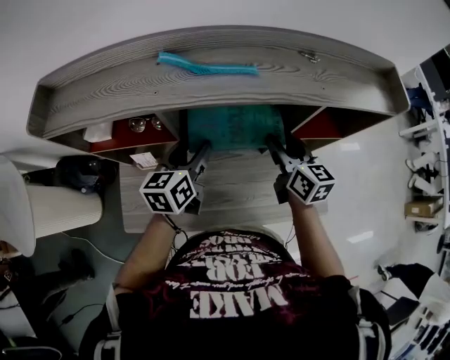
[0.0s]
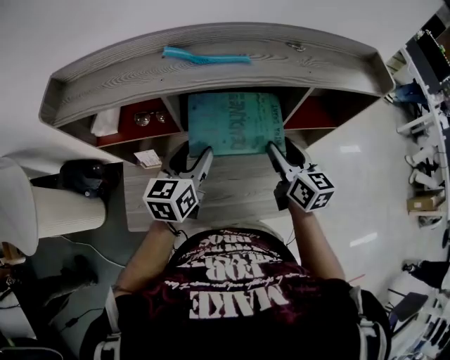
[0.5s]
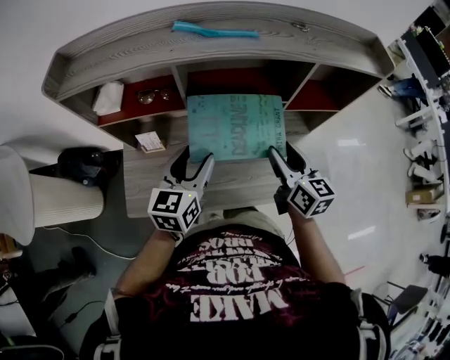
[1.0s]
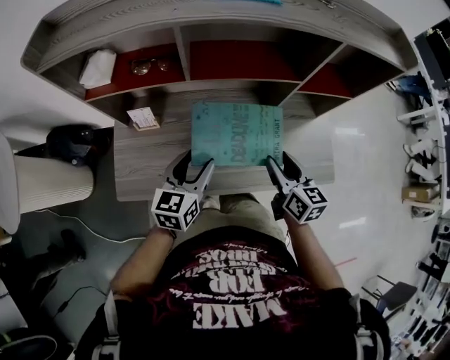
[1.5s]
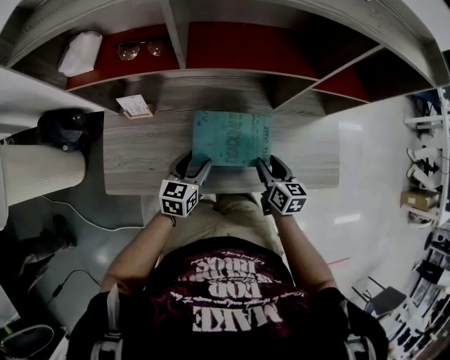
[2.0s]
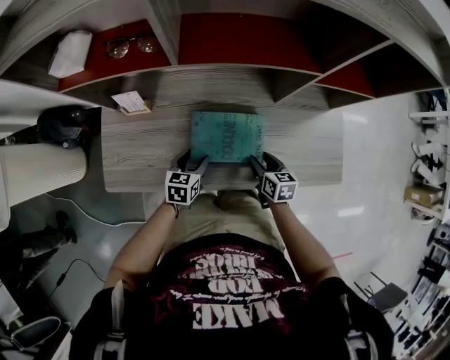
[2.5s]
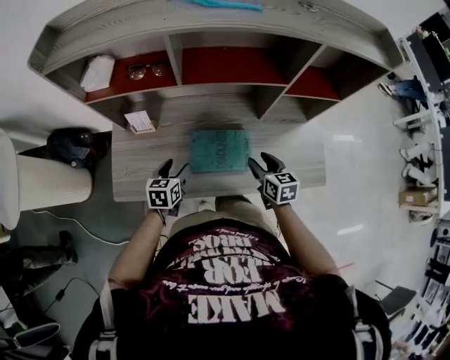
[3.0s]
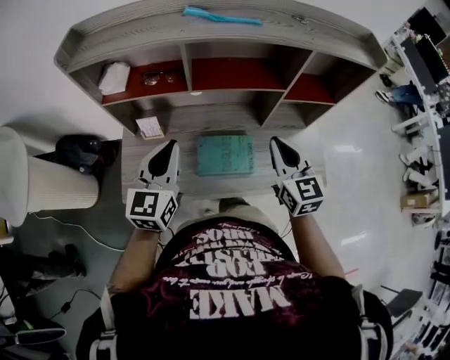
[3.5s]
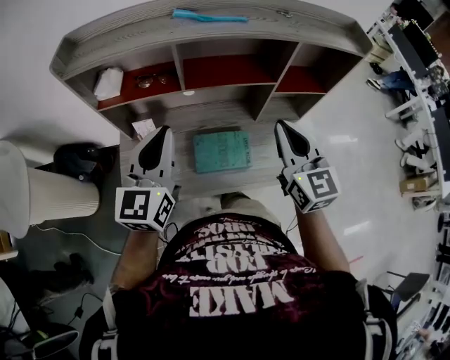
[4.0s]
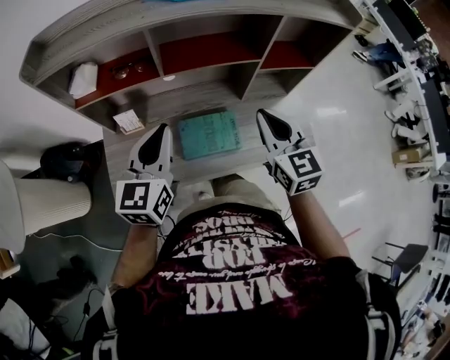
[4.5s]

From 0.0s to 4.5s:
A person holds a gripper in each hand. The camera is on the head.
From 0.0s to 2.0s: The grippers both shift downward and backward by approximately 30 cm.
From 2.0s to 4.5s: The left gripper goes up and down, about 50 cm each way, reversing 2 times, changes its angle by roughly 30 degrees, and closes up. Meanwhile the right gripper goes up and down, approximately 50 cm each way, reversing 2 times, changes its angle by approximately 30 degrees, and closes.

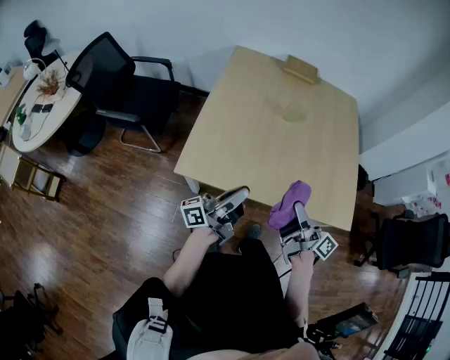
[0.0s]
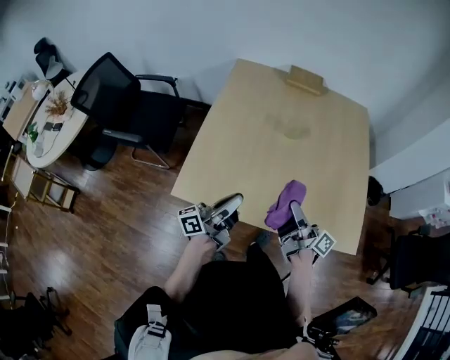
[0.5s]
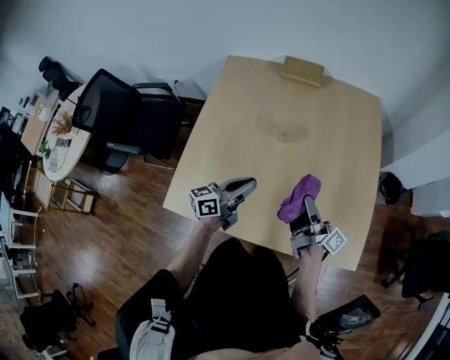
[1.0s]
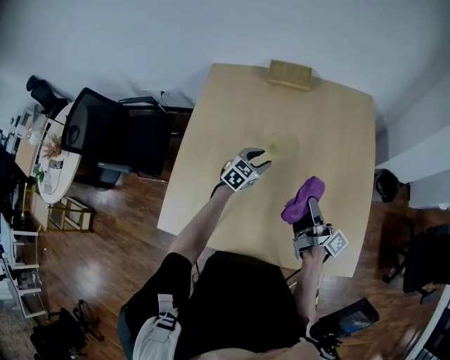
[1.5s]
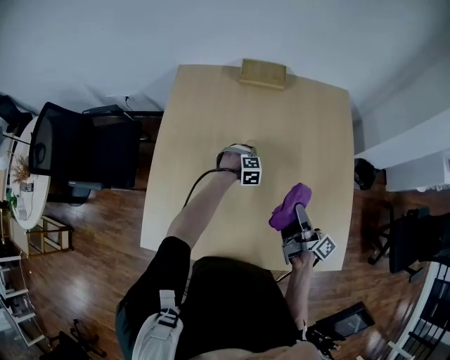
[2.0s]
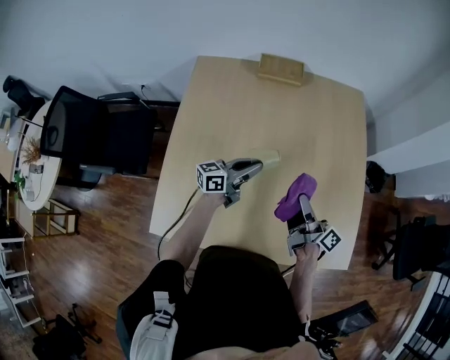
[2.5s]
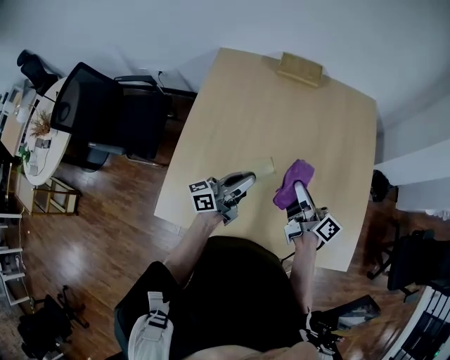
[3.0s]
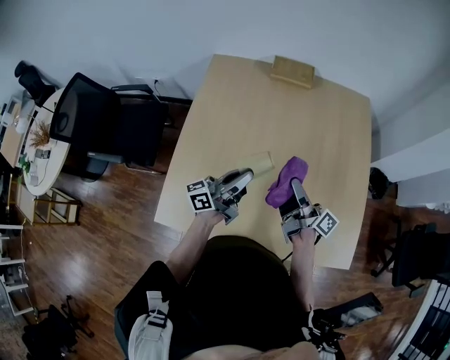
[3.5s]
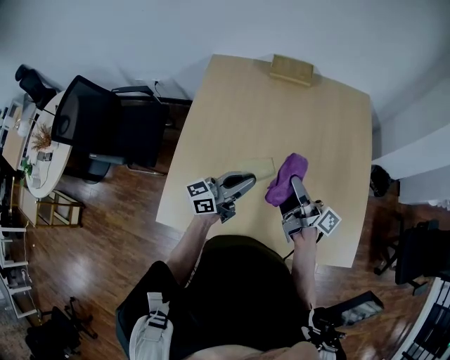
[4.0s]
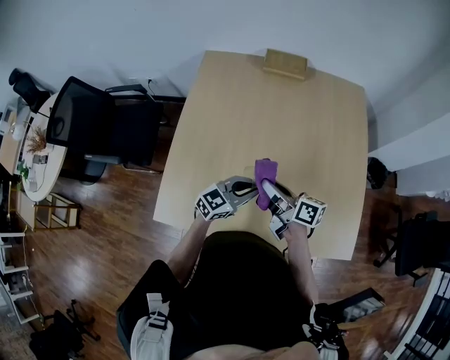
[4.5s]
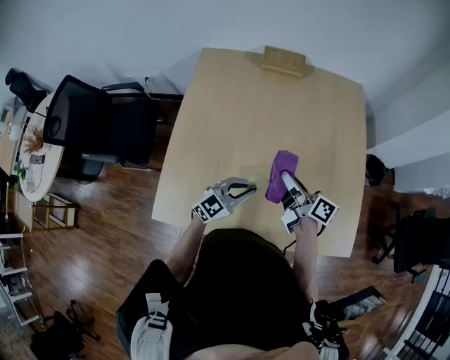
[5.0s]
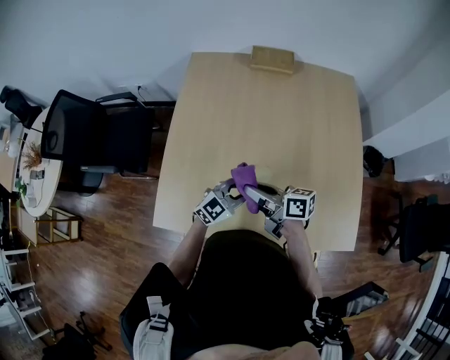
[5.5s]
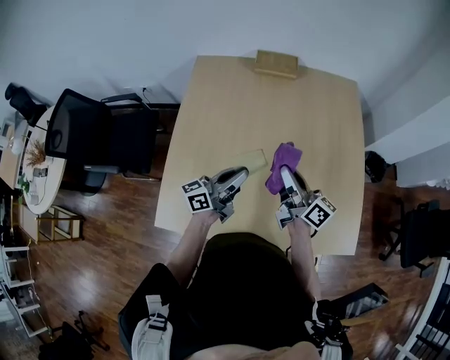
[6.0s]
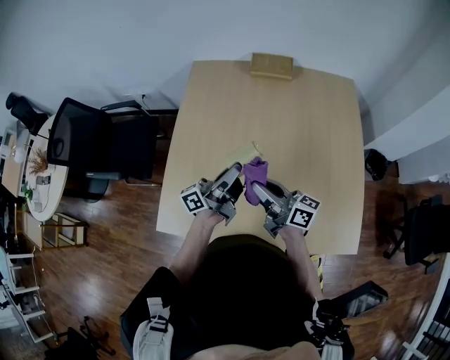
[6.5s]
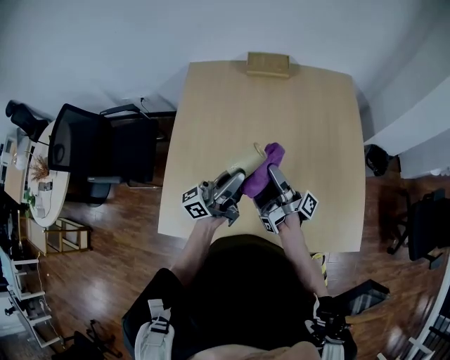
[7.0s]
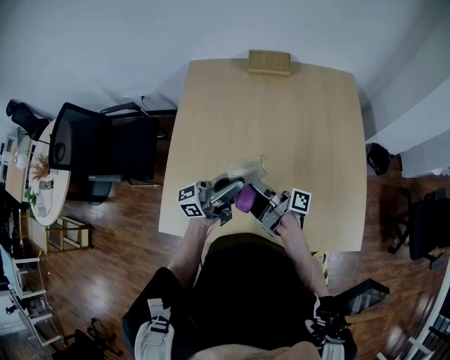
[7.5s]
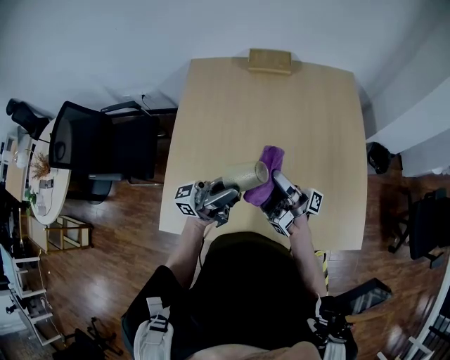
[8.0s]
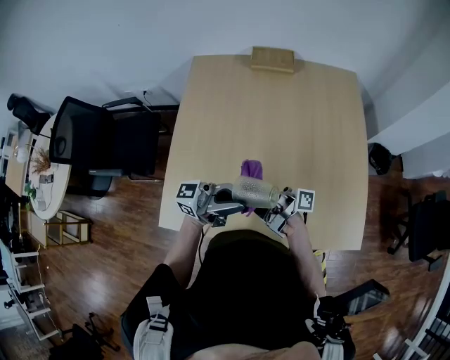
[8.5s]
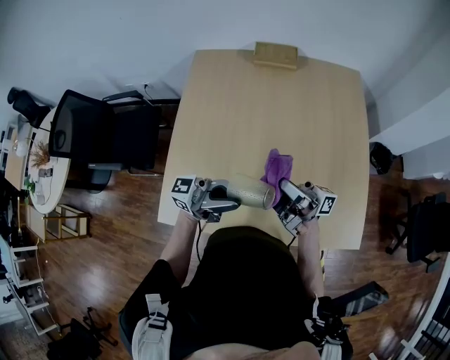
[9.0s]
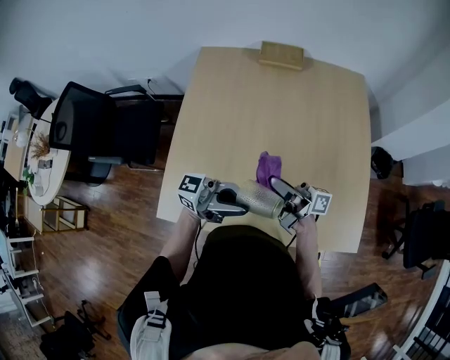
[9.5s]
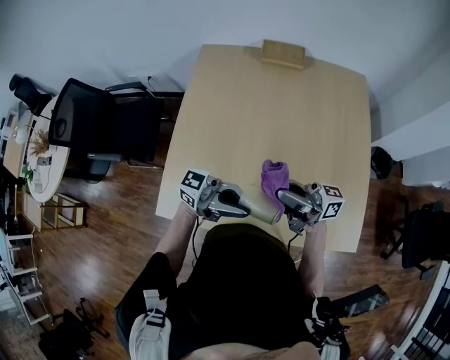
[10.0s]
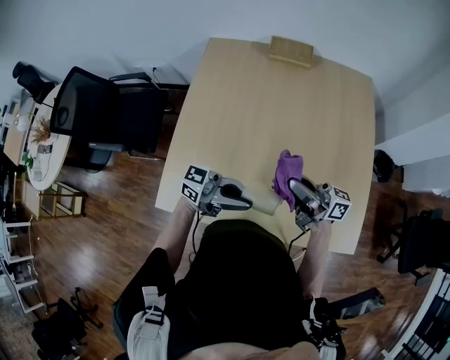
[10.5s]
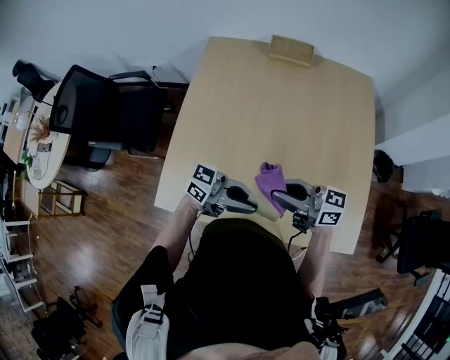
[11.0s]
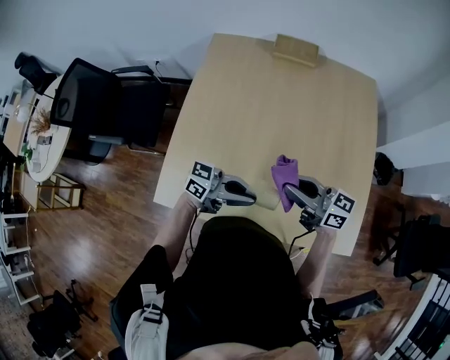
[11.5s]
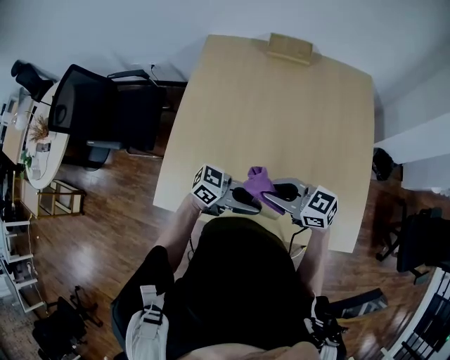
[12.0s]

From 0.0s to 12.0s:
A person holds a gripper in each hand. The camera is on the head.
From 0.0s to 2.0s: The right gripper heads forward and to the right, covering roughly 35 cm. Meanwhile the left gripper heads forward and downward, covering approximately 60 cm, points its fingers roughly 100 degrees further downward, and opens up.
From 2.0s to 4.0s: The right gripper moves to the left and upward, some 10 cm. The left gripper travels upward and backward by some 35 cm, and points its fingers roughly 80 degrees further upward.
From 4.0s to 6.0s: The left gripper reaches some 10 cm downward, then returns. The right gripper swings left and right, some 10 cm each way, with 3 reversals, and swivels approximately 30 degrees.
From 6.0s to 8.0s: The left gripper goes some 10 cm upward and backward, and swivels some 30 degrees, while the right gripper goes downward and returns, some 5 cm each way, and twists approximately 50 degrees clockwise, seen from behind.
From 8.0s to 10.0s: The right gripper moves up and down over some 10 cm, changing direction 3 times, and rotates approximately 50 degrees, while the left gripper shifts by about 10 cm, and swivels approximately 30 degrees.
From 10.0s to 12.0s: The two grippers go approximately 10 cm downward. The left gripper swivels about 20 degrees. The right gripper tilts its fingers about 40 degrees downward.

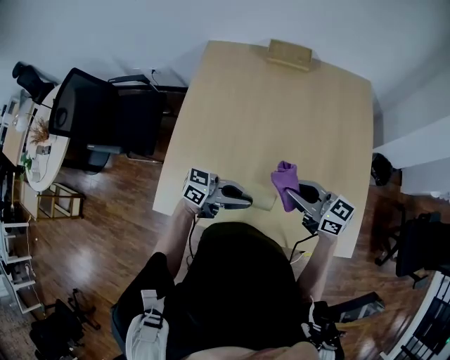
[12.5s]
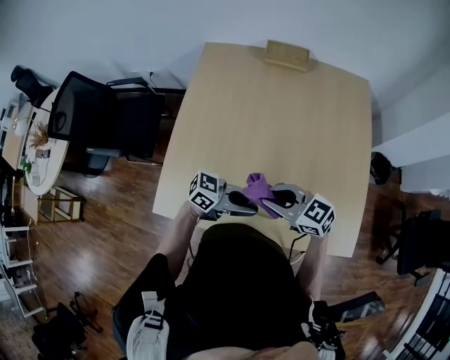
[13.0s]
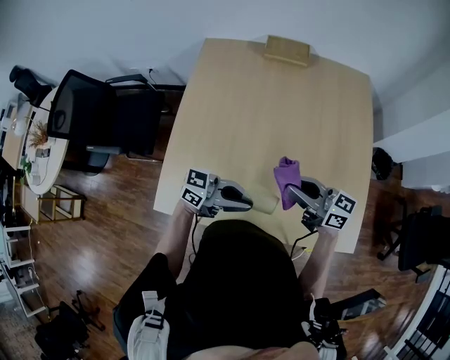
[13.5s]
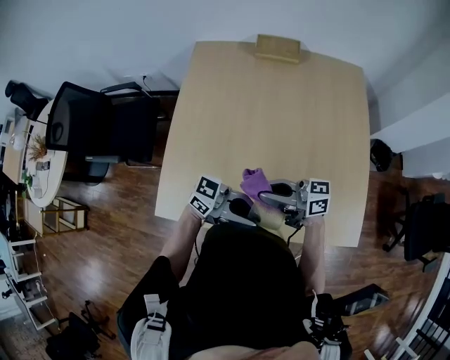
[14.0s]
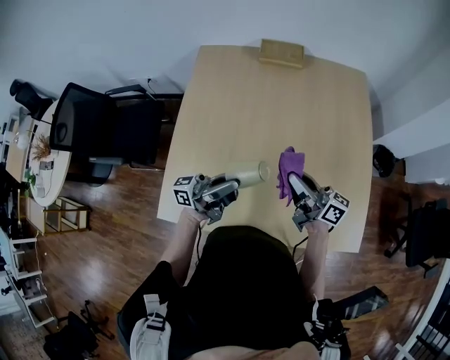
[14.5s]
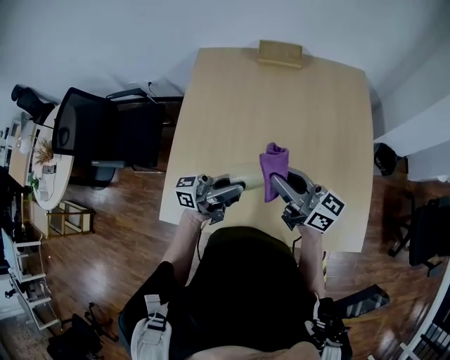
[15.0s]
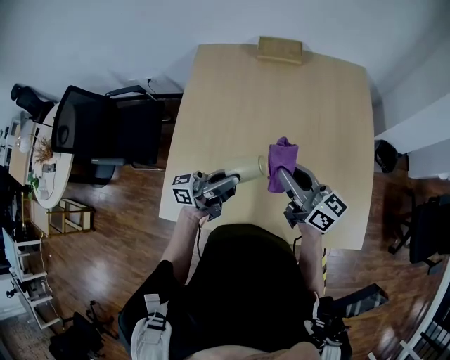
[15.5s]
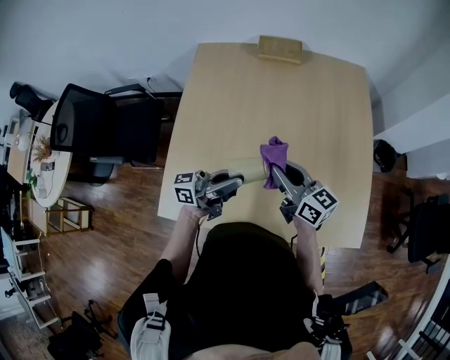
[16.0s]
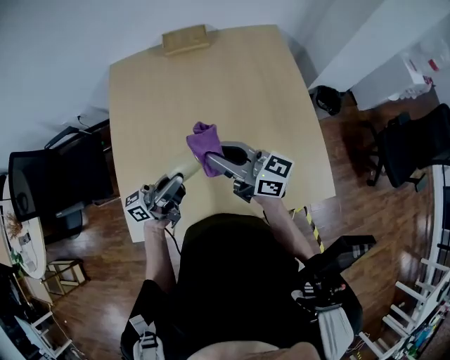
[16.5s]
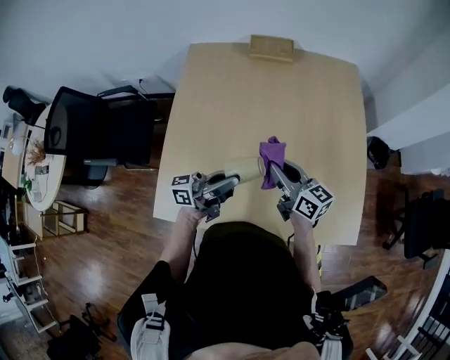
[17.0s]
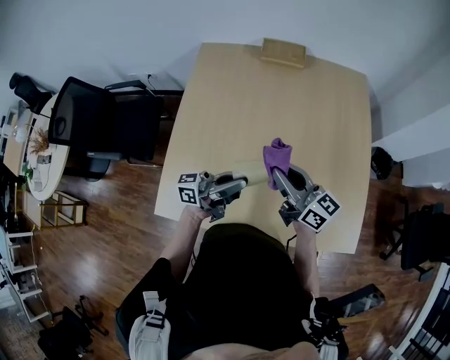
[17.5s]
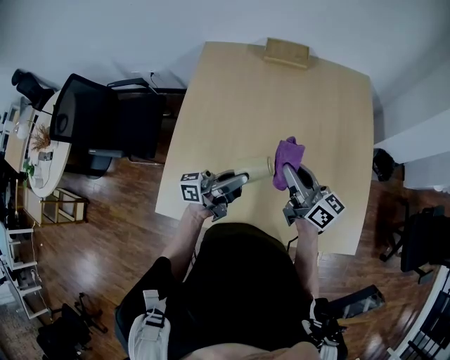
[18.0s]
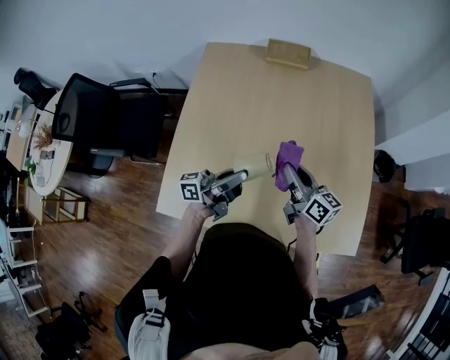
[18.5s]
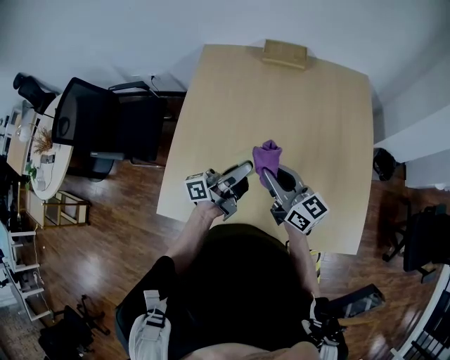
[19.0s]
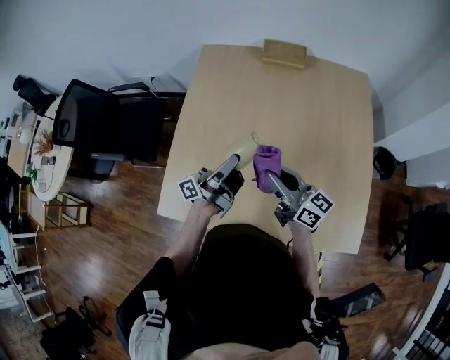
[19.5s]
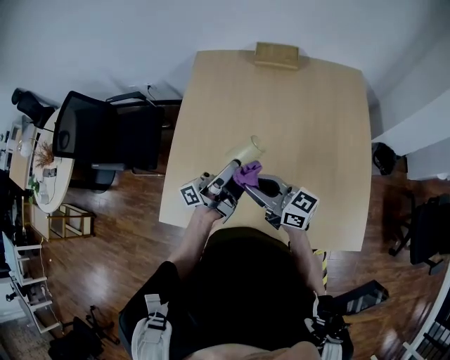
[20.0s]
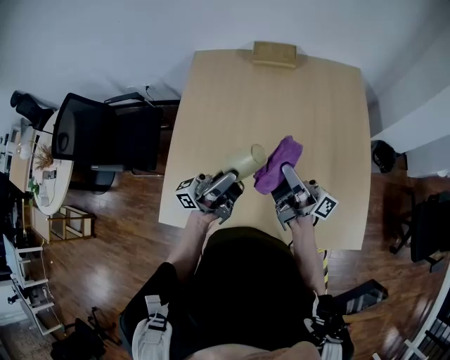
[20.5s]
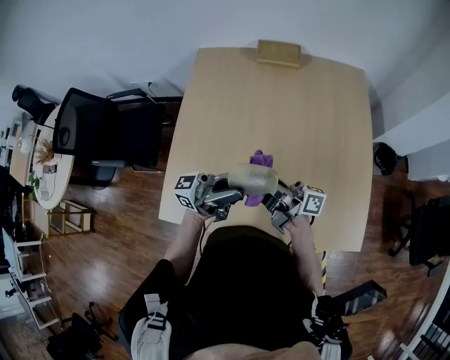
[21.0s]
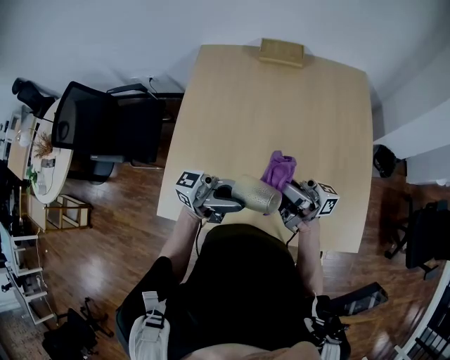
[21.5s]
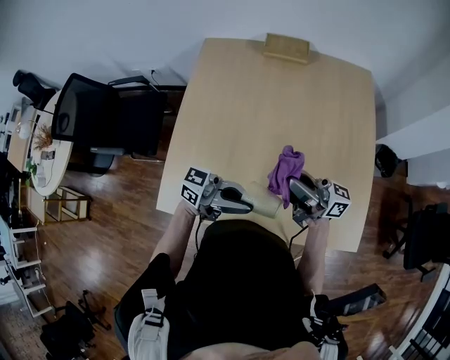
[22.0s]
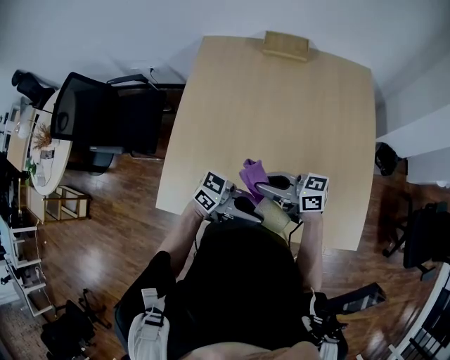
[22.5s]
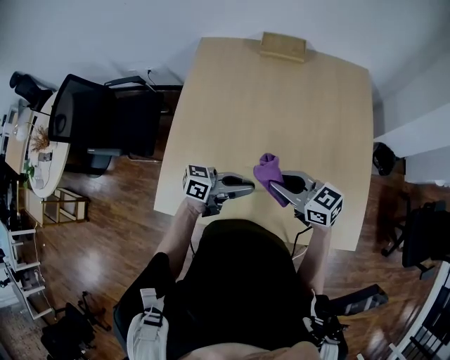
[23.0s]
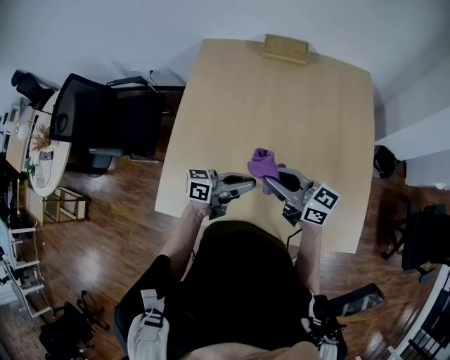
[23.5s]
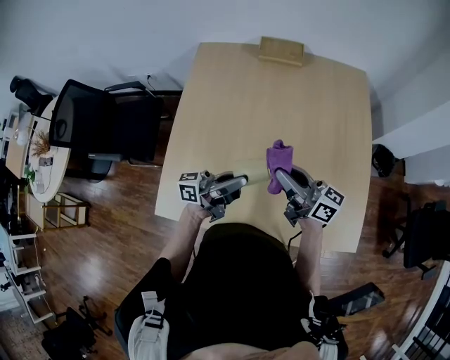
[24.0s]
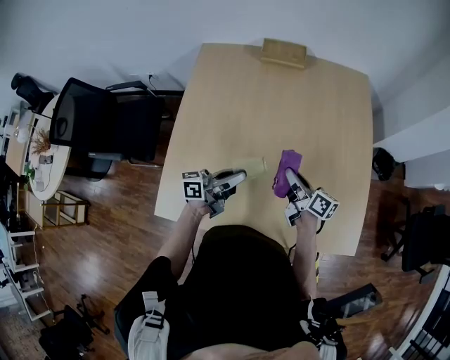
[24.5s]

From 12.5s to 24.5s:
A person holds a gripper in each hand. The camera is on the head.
From 12.5s to 14.5s: The left gripper moves roughly 10 cm, and changes its angle by some 40 degrees. Meanwhile the right gripper turns by approximately 30 degrees.
From 14.5s to 16.5s: The right gripper goes up and down, roughly 5 cm each way, reversing 2 times.
From 16.5s to 18.5s: The right gripper moves up and down over roughly 10 cm, changing direction 2 times.
From 18.5s to 20.5s: The grippers both shift upward by approximately 10 cm. The right gripper travels to the left and back again, about 10 cm each way, and angles its fingers upward, by about 40 degrees.
From 20.5s to 22.5s: The right gripper moves up and down over roughly 10 cm, changing direction 2 times, and angles its fingers downward, by about 40 degrees; the left gripper shifts by approximately 20 cm, and tips its fingers downward by some 30 degrees.
From 22.5s to 24.5s: The right gripper shifts by about 15 cm, and changes its angle by roughly 50 degrees; the left gripper moves up and down over roughly 5 cm, changing direction 2 times, and rotates approximately 50 degrees.
